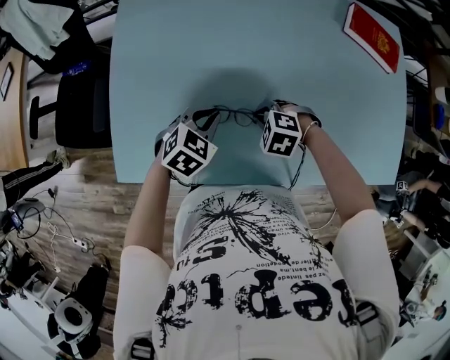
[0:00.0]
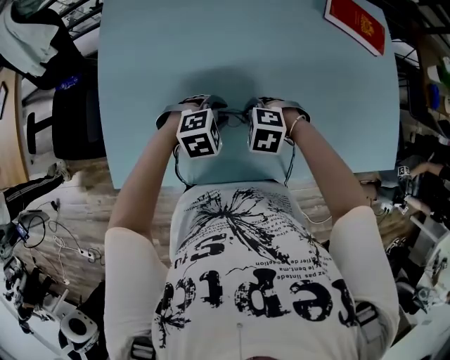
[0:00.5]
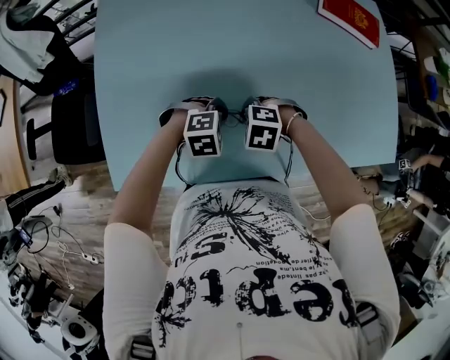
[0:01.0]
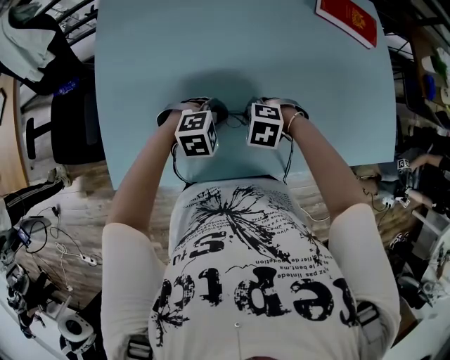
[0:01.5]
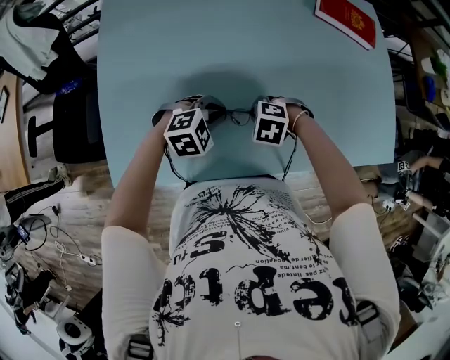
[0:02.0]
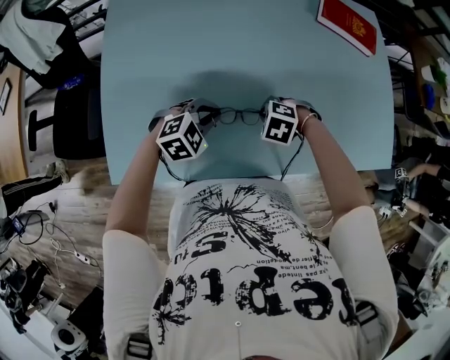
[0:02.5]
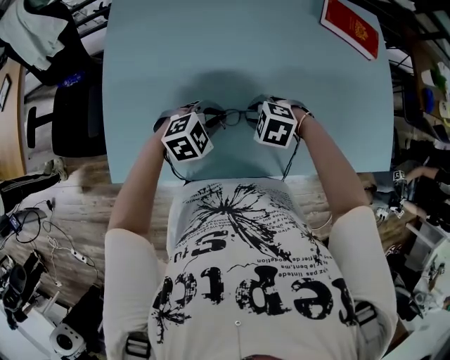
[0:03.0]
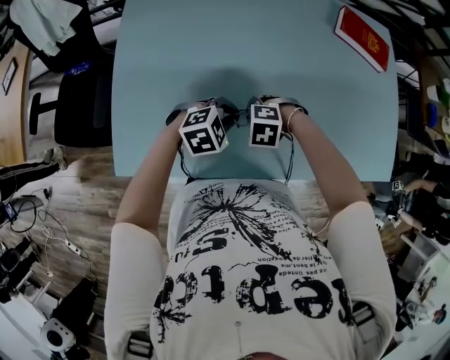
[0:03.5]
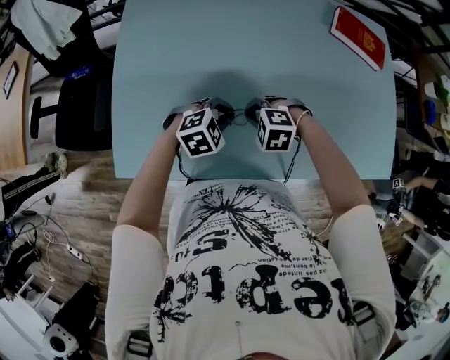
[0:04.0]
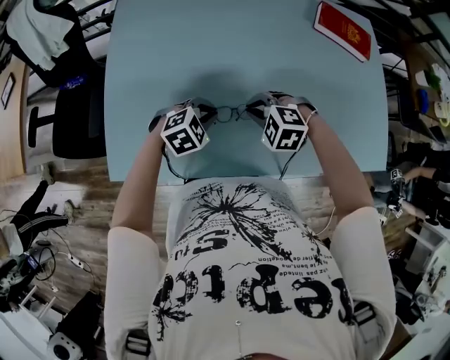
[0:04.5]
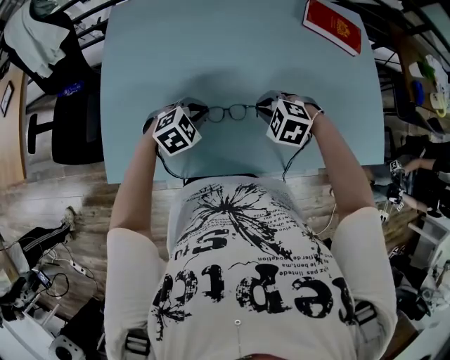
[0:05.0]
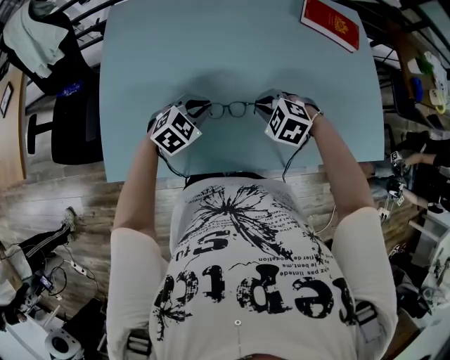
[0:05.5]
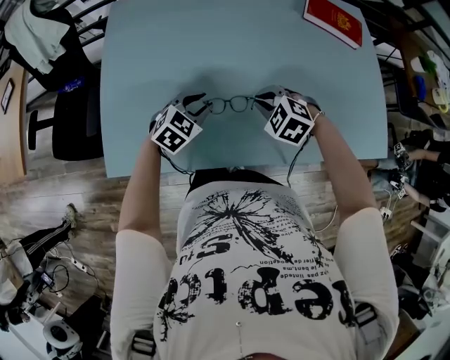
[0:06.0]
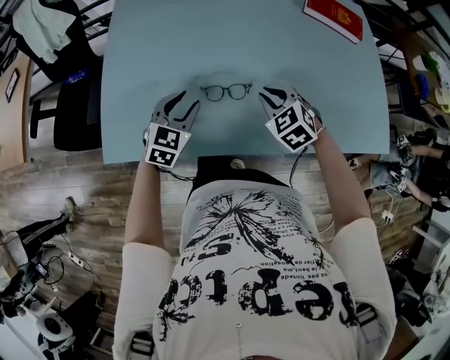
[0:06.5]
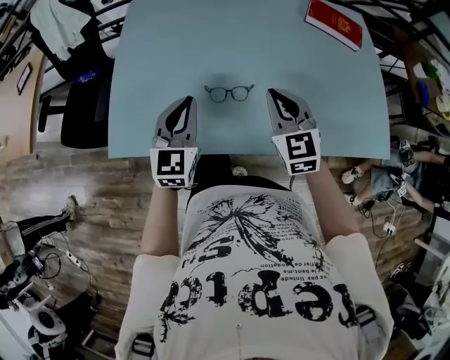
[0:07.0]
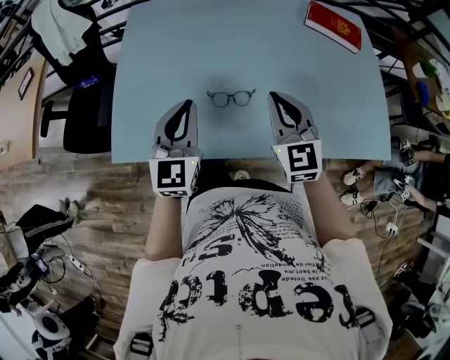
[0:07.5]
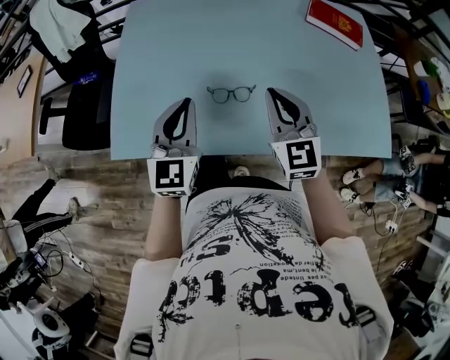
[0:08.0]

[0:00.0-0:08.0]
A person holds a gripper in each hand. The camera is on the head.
0:00.0 to 0:02.0: The right gripper moves about 5 cm; the left gripper ends up some 10 cm from where it was, turns by approximately 40 degrees, and opens, then closes once more.
0:02.0 to 0:04.0: The right gripper moves roughly 10 cm, and opens, then closes once more.
0:04.0 to 0:06.0: The right gripper changes place by about 10 cm, and changes its angle by some 20 degrees.
0:06.0 to 0:08.0: The right gripper shifts approximately 15 cm upward, and points its fingers about 50 degrees further upward. The left gripper shifts roughly 20 cm upward and backward, tilts its fingers some 40 degrees upward, and closes.

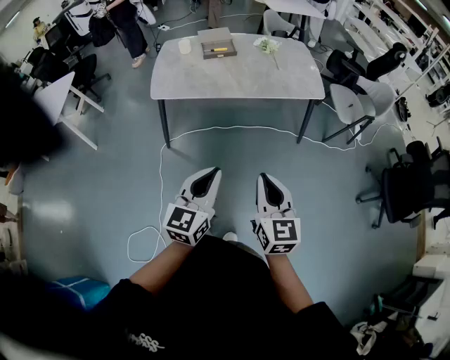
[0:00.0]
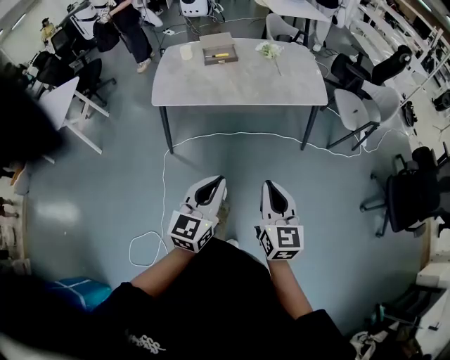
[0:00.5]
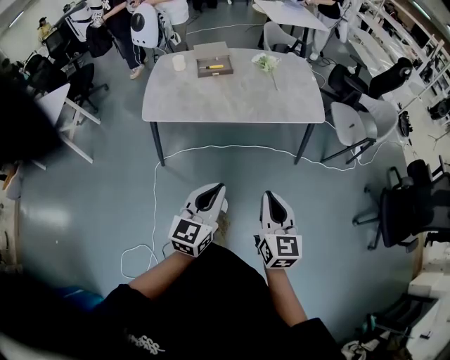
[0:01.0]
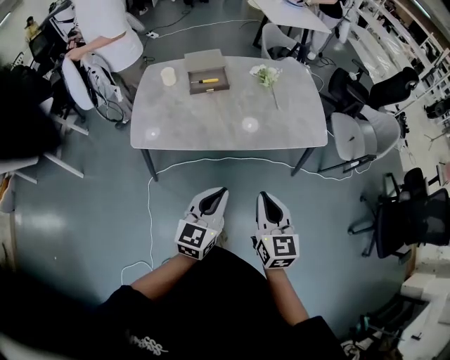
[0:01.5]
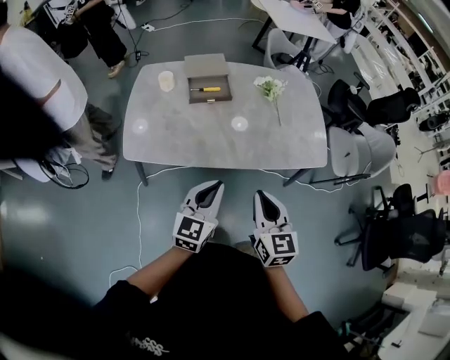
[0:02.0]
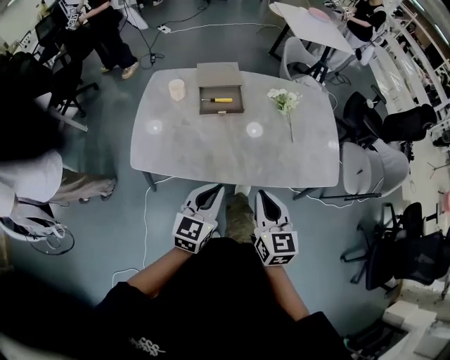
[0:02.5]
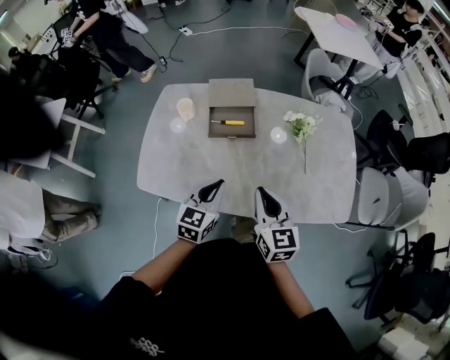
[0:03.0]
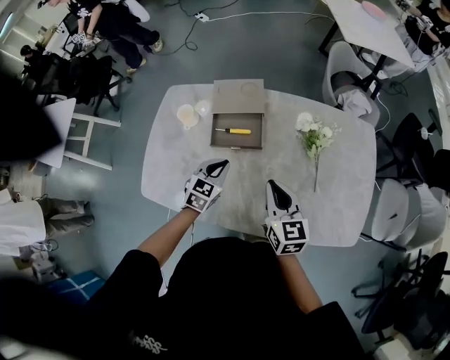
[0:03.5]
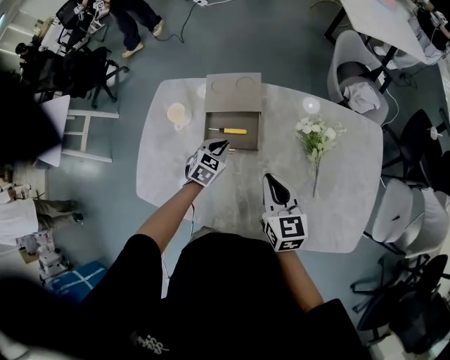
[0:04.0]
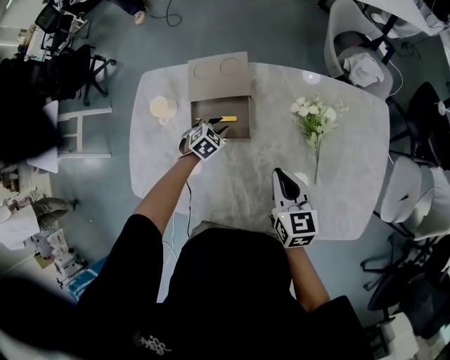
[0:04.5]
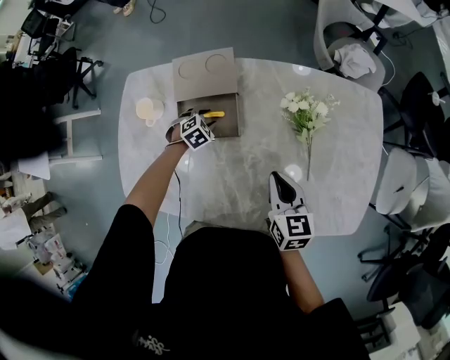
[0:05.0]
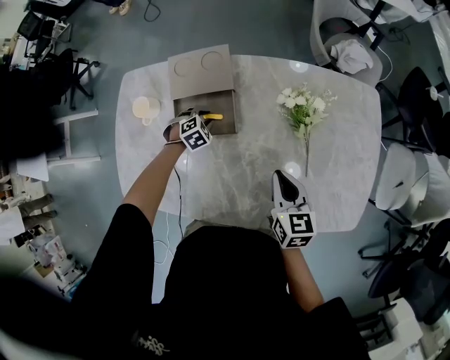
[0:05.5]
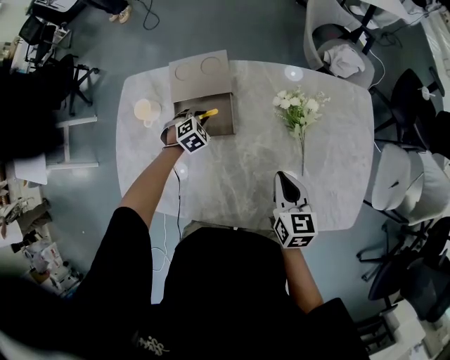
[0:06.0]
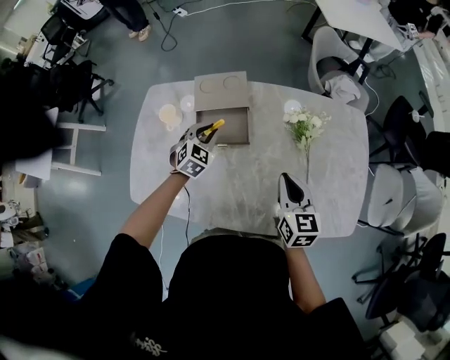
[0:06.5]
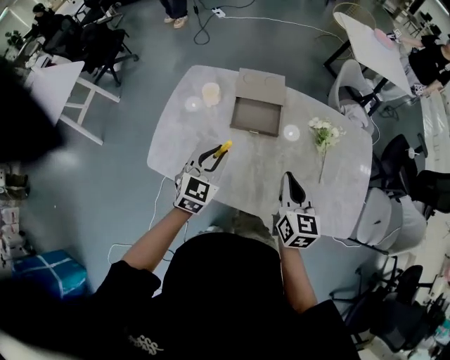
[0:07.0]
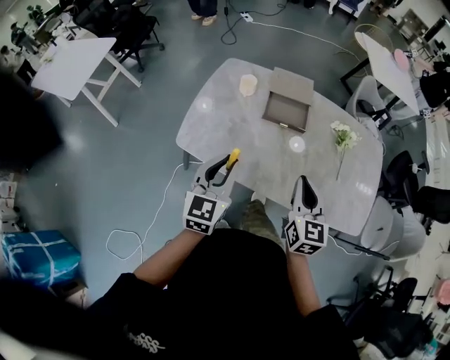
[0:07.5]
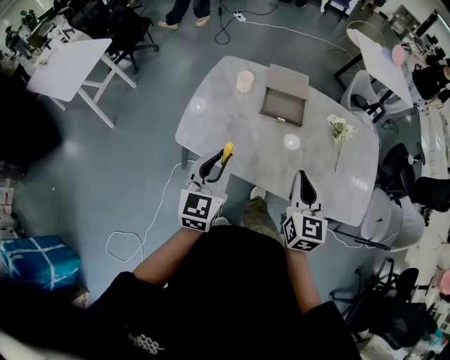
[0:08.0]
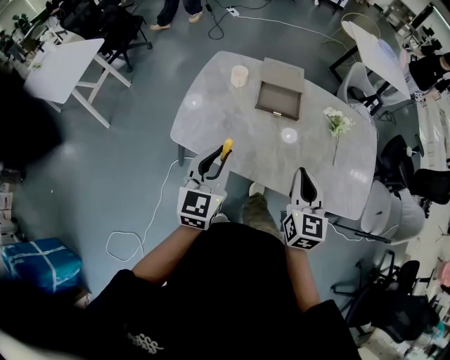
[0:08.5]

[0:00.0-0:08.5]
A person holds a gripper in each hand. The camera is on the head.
0:00.0 to 0:02.0: Both grippers are carried forward, roughly 50 cm.
0:02.0 to 0:04.0: Both grippers are carried forward, about 50 cm. The left gripper moves downward, approximately 25 cm, and tilts its fingers roughly 40 degrees downward. Meanwhile the right gripper rotates some 20 degrees.
0:04.0 to 0:06.5: The left gripper is displaced upward by about 5 cm, and opens and closes again. The right gripper moves to the right, about 5 cm.
0:06.5 to 0:08.5: The right gripper heads backward, to the left and upward, covering about 35 cm, while the left gripper goes some 50 cm backward, upward and to the left, and angles its fingers upward, by some 30 degrees.

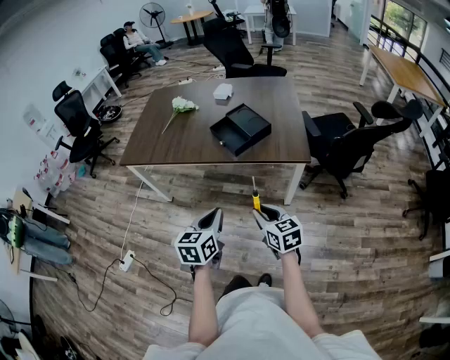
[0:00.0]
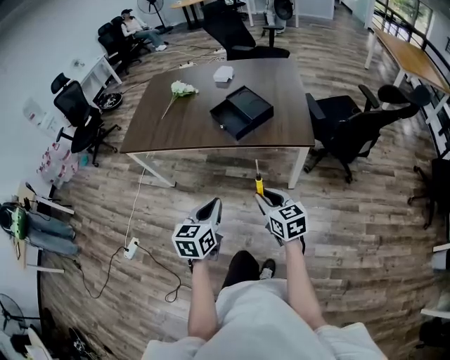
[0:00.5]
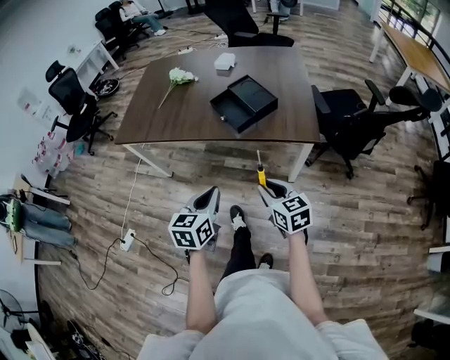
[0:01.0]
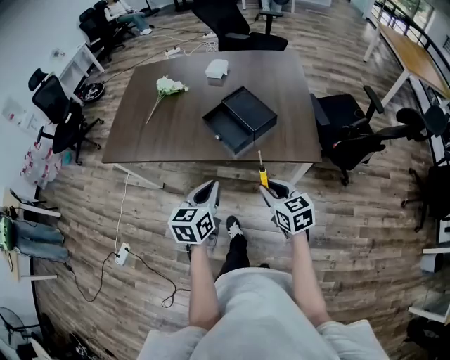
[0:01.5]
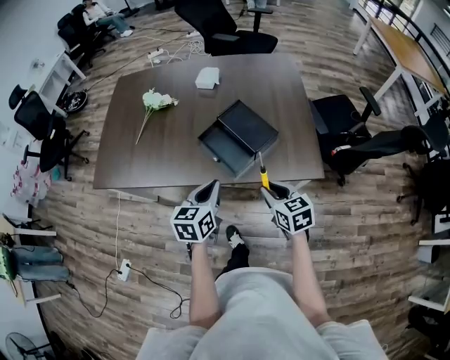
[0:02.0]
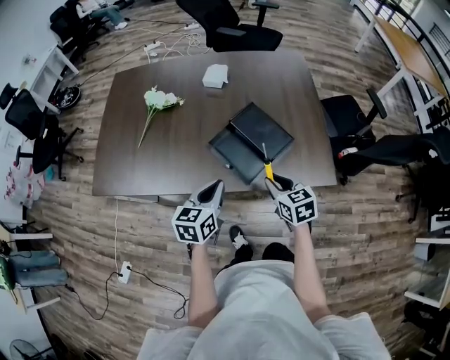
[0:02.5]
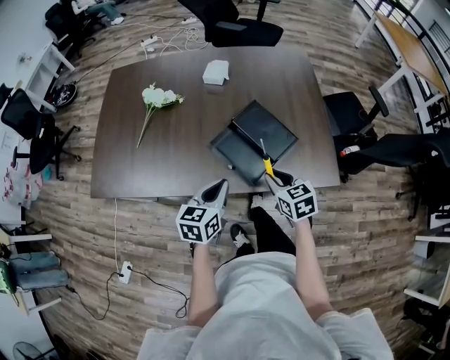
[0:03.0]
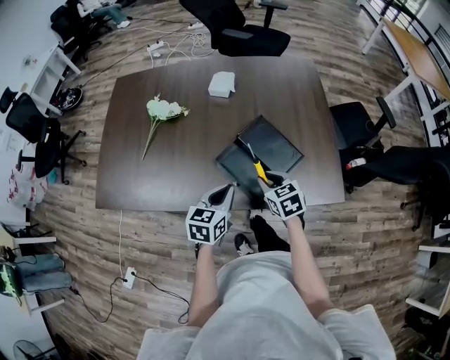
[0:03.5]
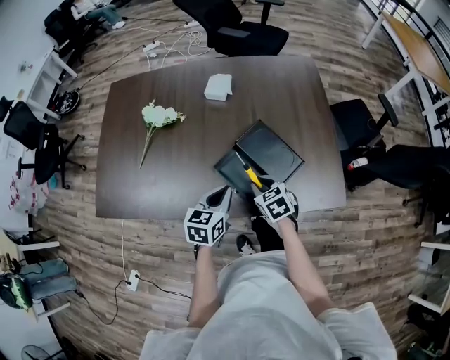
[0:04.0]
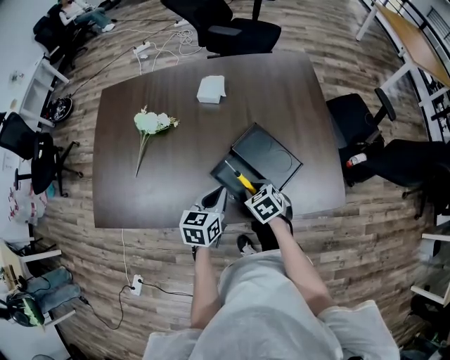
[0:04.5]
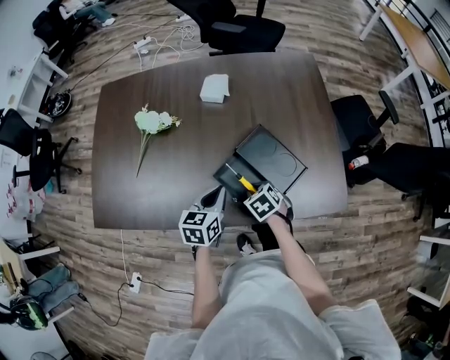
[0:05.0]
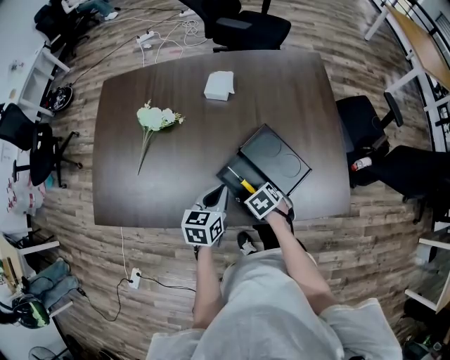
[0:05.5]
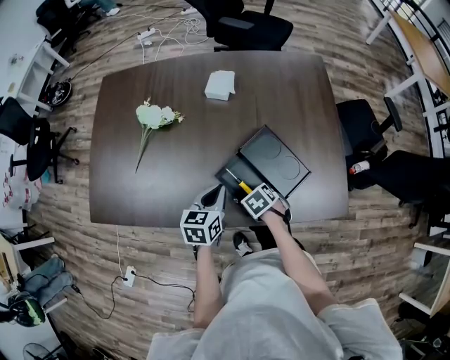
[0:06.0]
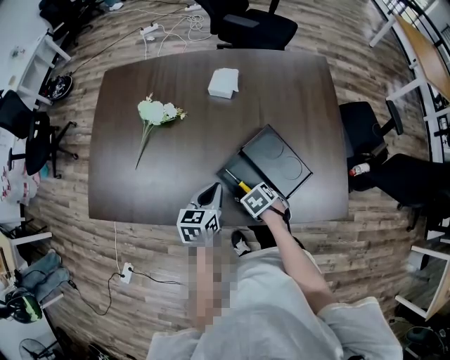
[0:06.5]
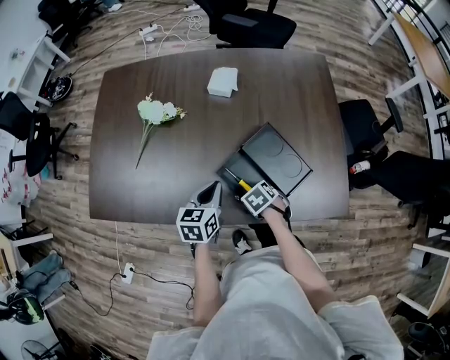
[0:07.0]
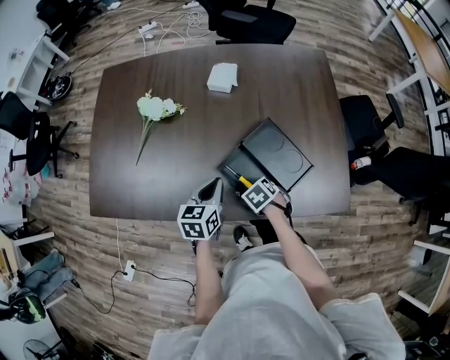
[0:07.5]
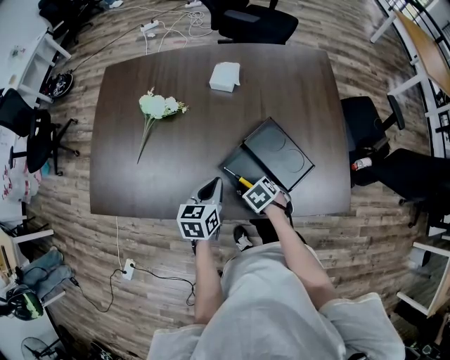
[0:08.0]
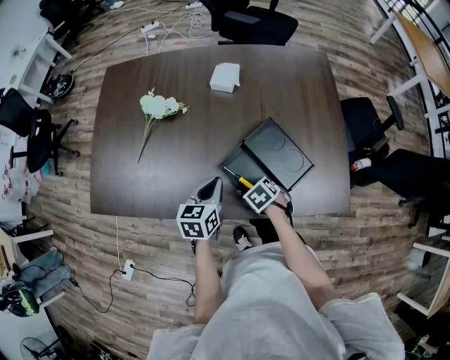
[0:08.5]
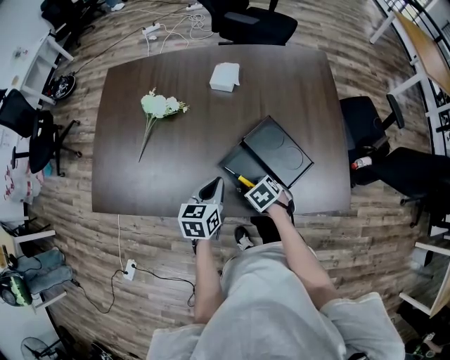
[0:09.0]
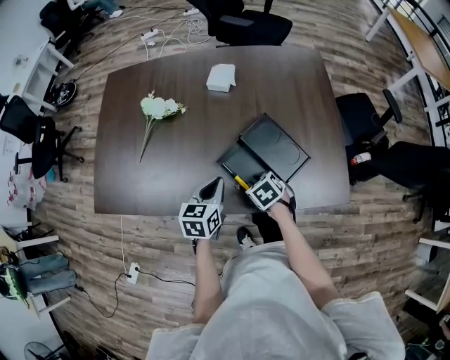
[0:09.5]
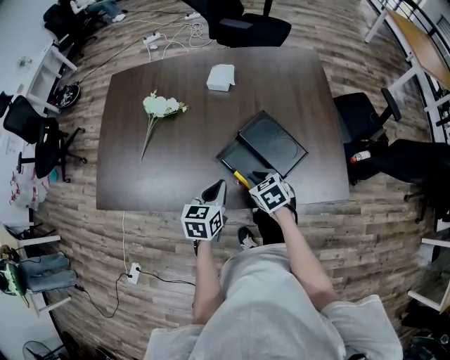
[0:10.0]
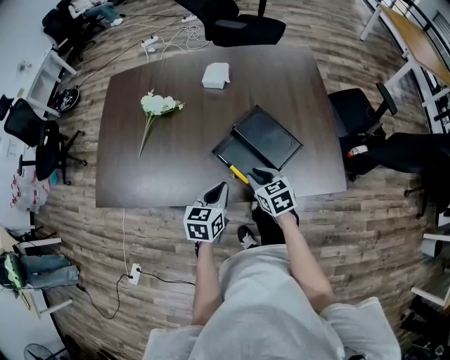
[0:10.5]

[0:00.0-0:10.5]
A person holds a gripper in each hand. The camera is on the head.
0:00.0 to 0:02.0: Both grippers move forward, approximately 30 cm.
0:02.0 to 0:04.0: The left gripper shifts about 15 cm forward and downward. Meanwhile the right gripper goes approximately 25 cm forward, to the left and downward.
0:04.0 to 0:06.5: The left gripper ends up about 10 cm from where it was. Meanwhile the right gripper is displaced downward by some 10 cm, and changes its angle by some 30 degrees.
0:06.5 to 0:08.5: The grippers make only small movements.
0:08.5 to 0:10.5: The left gripper changes place by about 10 cm. The right gripper shifts some 10 cm upward, and tips its fingers upward by approximately 30 degrees.
